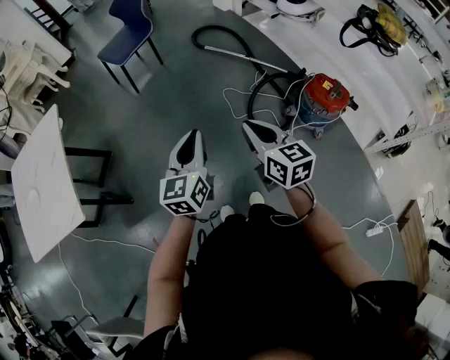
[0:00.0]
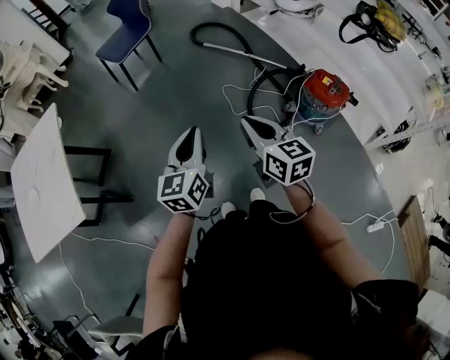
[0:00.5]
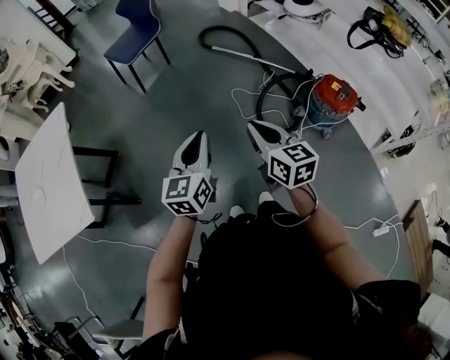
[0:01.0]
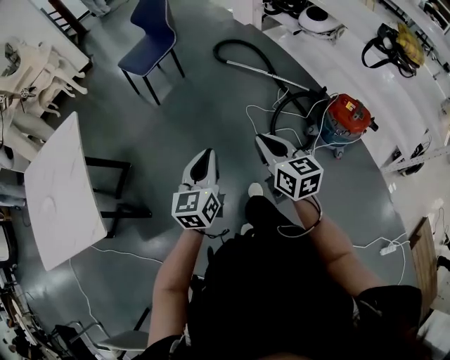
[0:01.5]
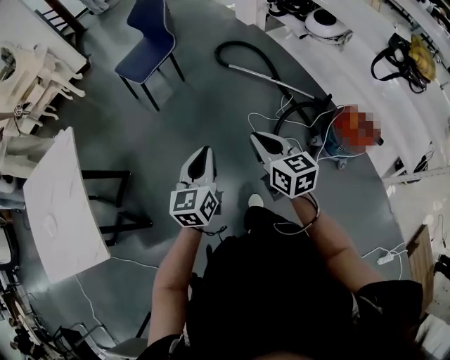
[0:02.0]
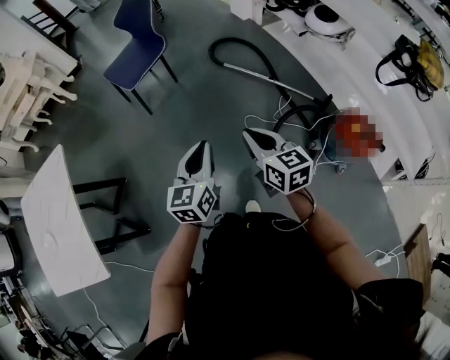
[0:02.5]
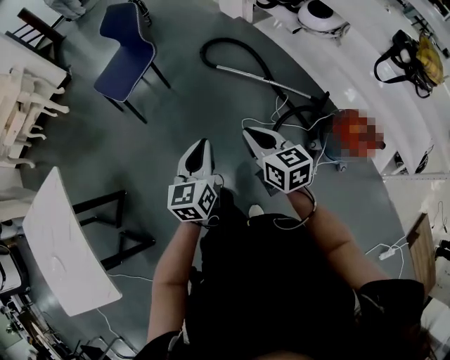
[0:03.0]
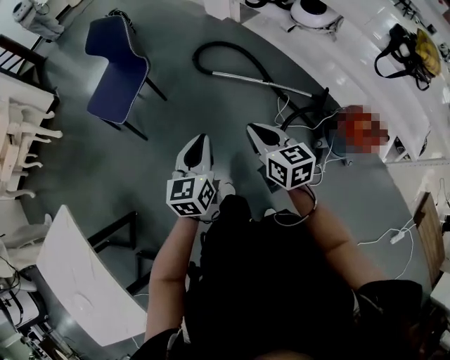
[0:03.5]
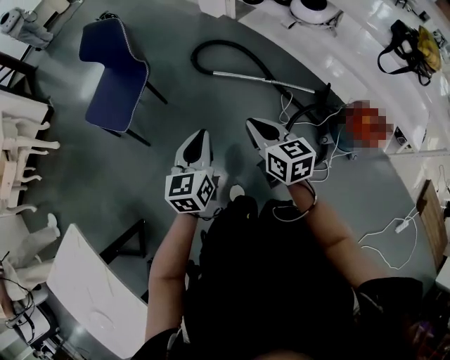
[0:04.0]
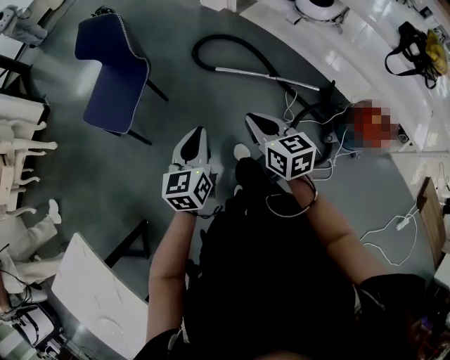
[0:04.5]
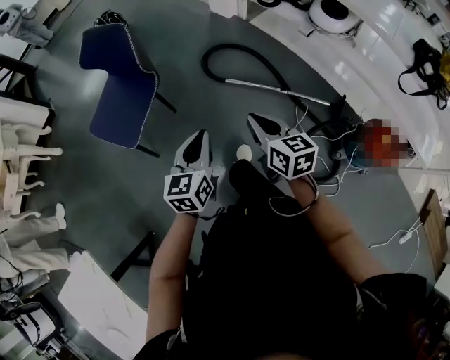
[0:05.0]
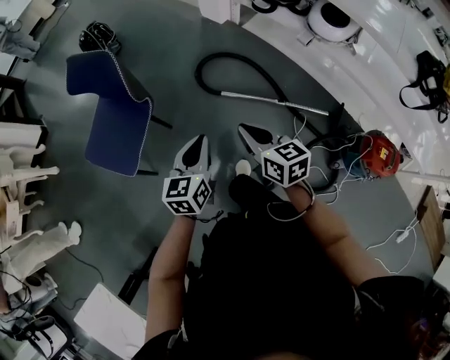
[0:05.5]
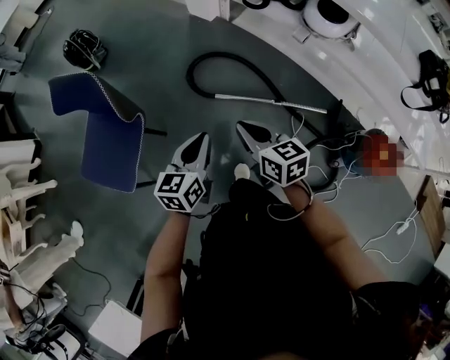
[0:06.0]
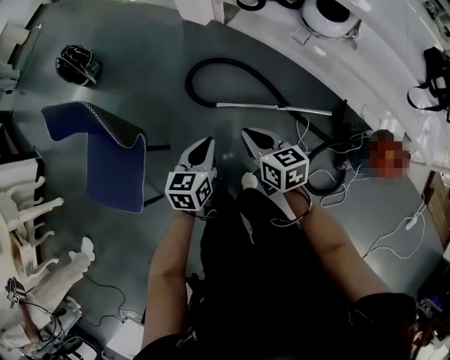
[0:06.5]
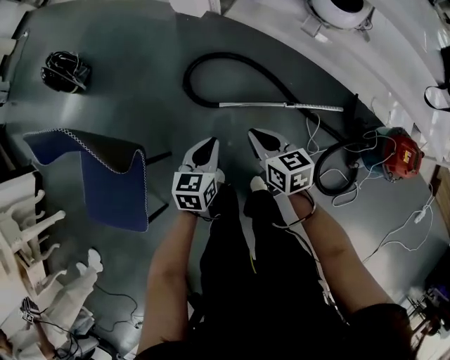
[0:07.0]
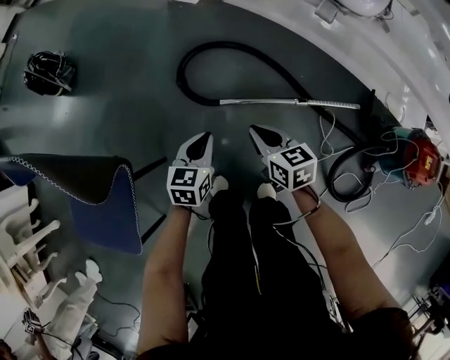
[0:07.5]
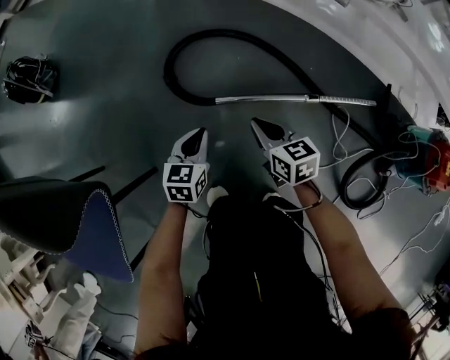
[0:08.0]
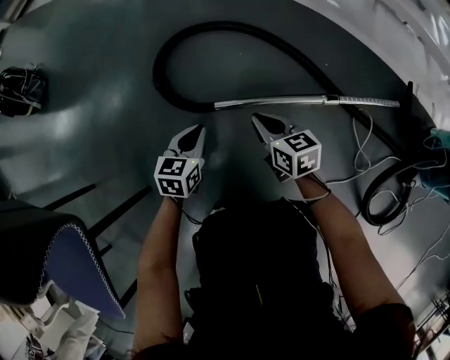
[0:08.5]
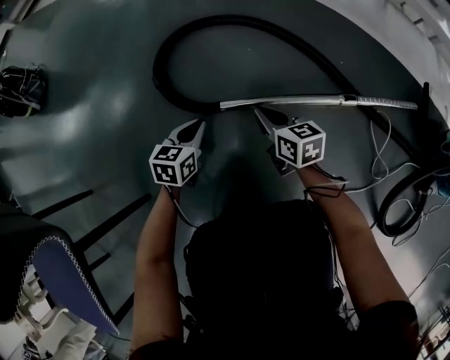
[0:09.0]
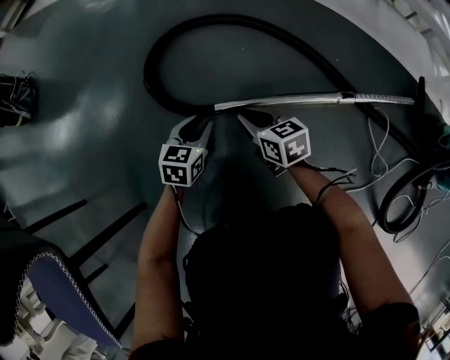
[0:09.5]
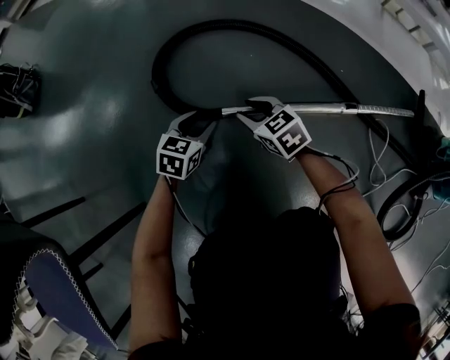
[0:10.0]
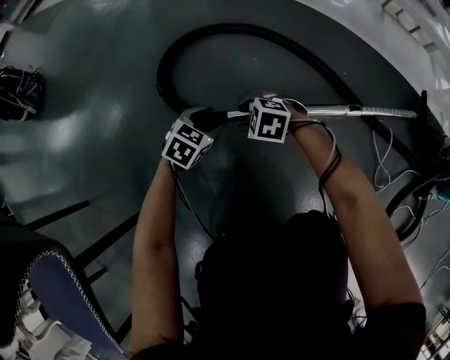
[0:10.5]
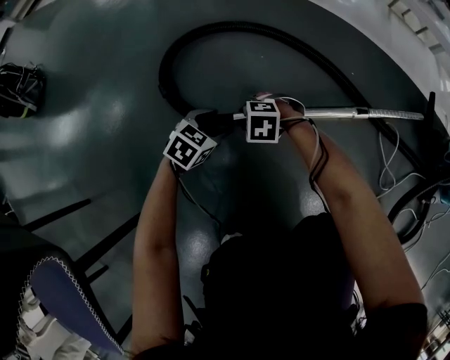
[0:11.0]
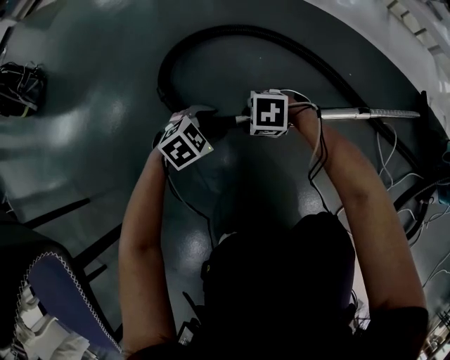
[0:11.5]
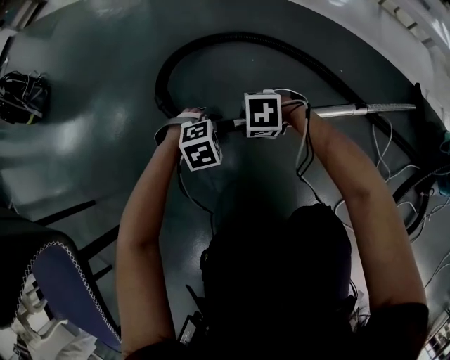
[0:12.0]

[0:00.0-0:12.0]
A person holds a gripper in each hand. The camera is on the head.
0:00.0 to 0:02.0: Both grippers move forward, roughly 20 cm.
0:02.0 to 0:04.0: The two grippers go approximately 35 cm forward.
0:04.0 to 0:06.0: Both grippers travel together forward, roughly 35 cm.
0:06.0 to 0:08.0: Both grippers travel together downward and forward, some 50 cm. The left gripper rotates roughly 20 degrees.
0:08.0 to 0:10.0: Both grippers travel together downward, approximately 25 cm. The left gripper opens its fingers. Meanwhile the right gripper changes its angle by roughly 30 degrees, and opens.
0:10.0 to 0:12.0: The right gripper travels downward and back again, approximately 10 cm each way, and changes its angle by roughly 50 degrees. The left gripper rolls clockwise, seen from behind, by some 50 degrees.

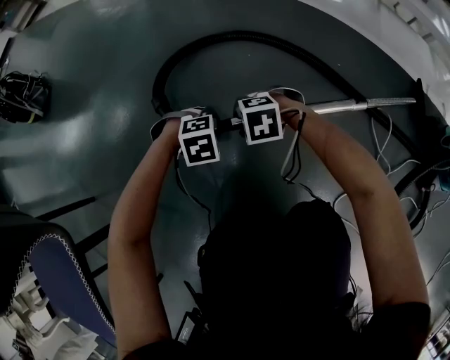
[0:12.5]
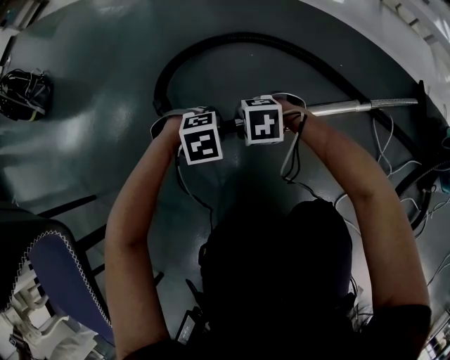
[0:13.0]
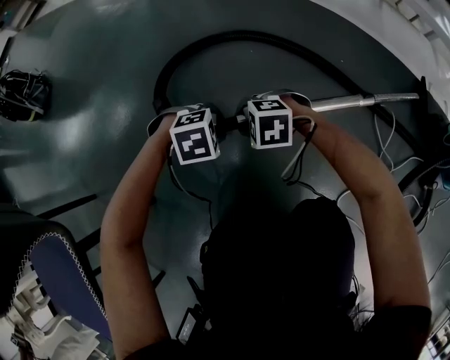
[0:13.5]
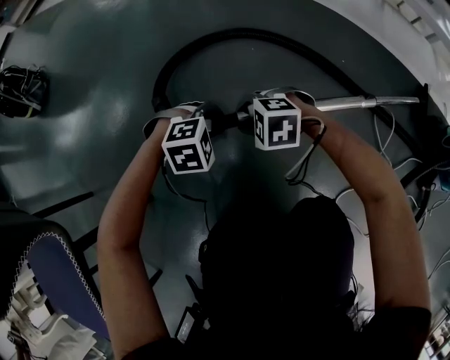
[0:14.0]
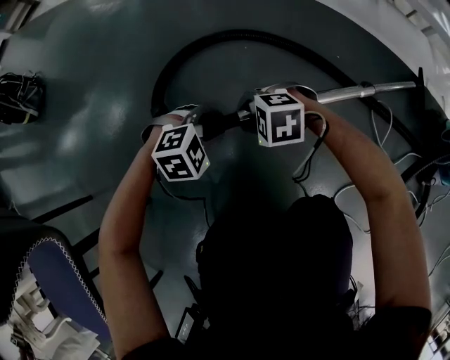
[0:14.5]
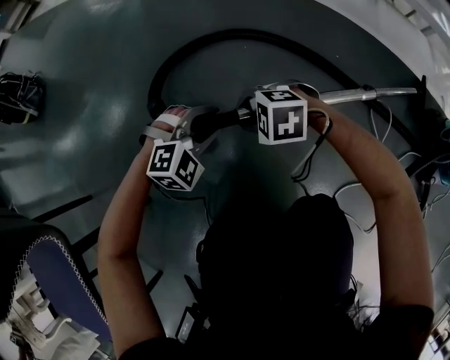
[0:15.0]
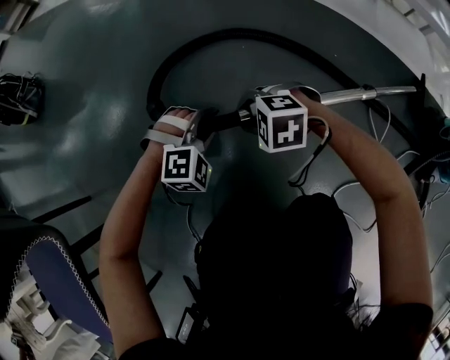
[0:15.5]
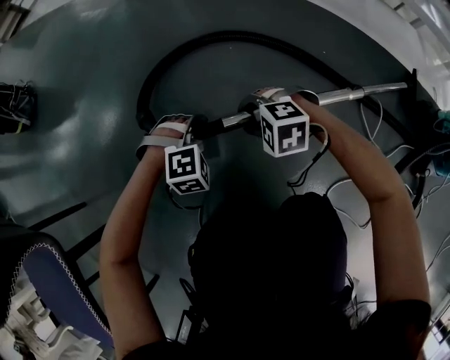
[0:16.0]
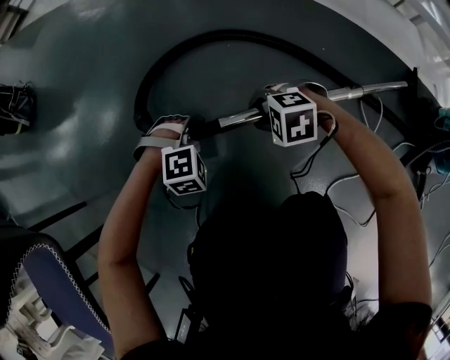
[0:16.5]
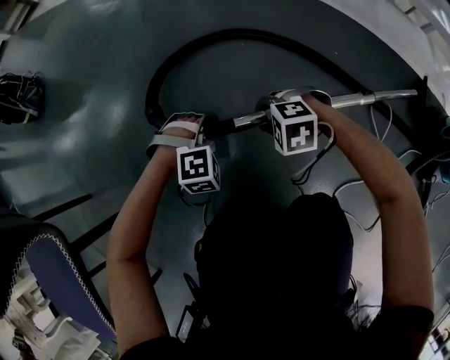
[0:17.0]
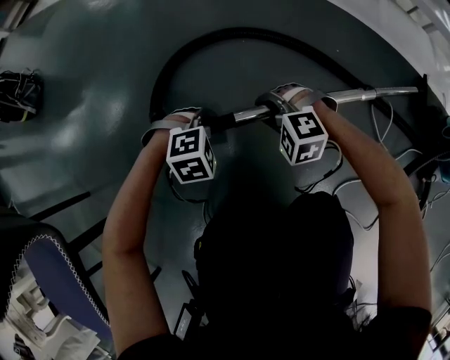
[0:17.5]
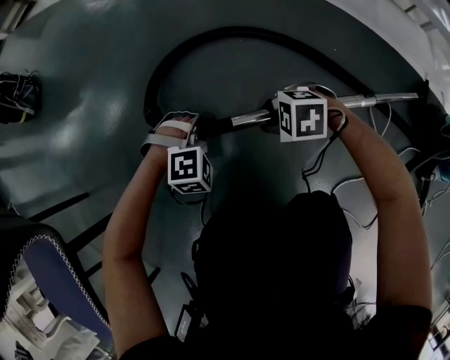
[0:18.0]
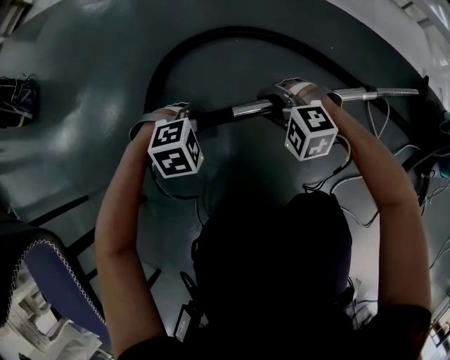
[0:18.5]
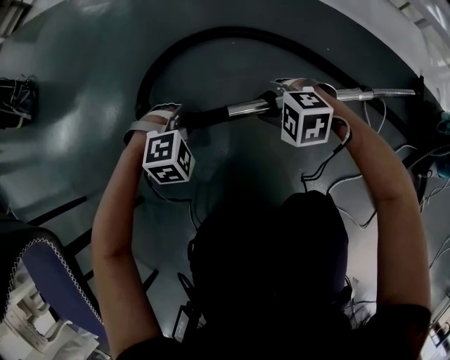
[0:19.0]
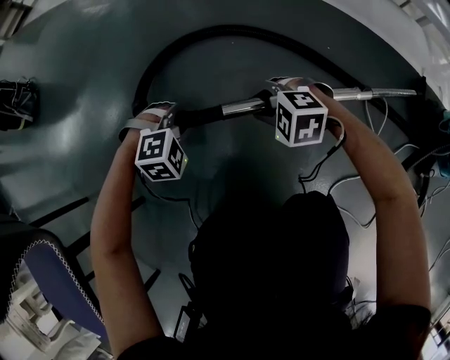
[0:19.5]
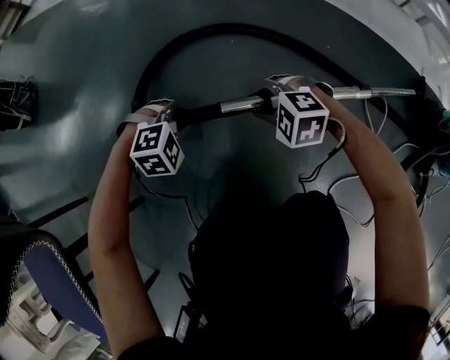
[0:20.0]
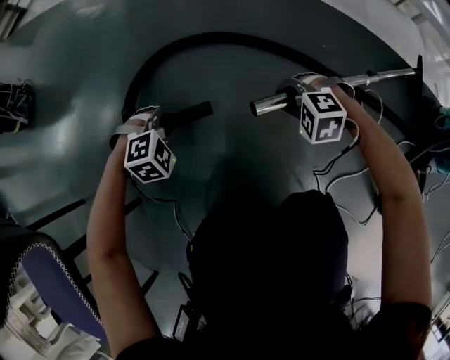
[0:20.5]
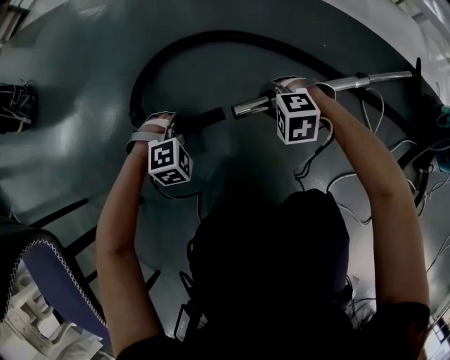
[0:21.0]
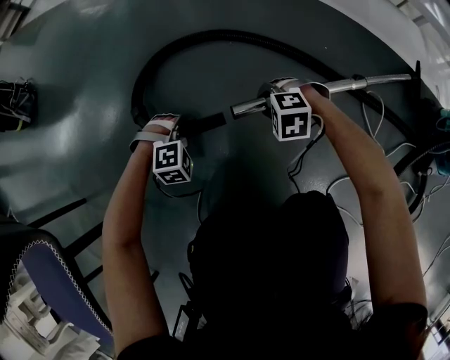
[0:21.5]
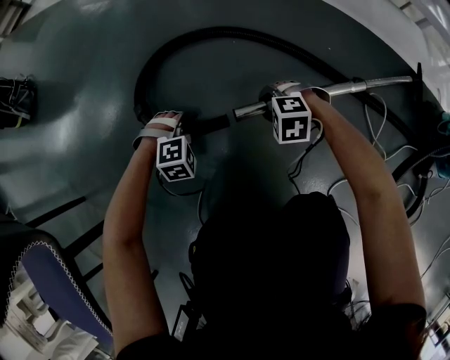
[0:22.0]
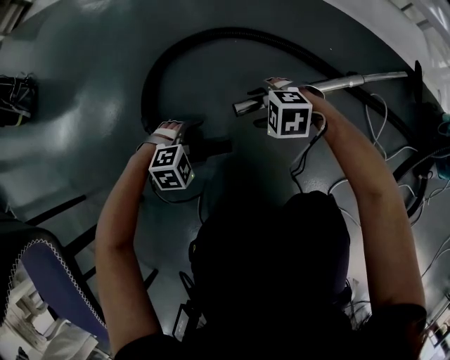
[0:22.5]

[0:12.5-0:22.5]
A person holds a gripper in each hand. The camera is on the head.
0:12.5 to 0:14.5: The left gripper travels upward by approximately 5 cm.
0:14.5 to 0:16.5: The right gripper changes place by approximately 5 cm. Meanwhile the left gripper rotates approximately 20 degrees.
0:16.5 to 0:18.5: The left gripper rotates some 20 degrees, while the right gripper turns by roughly 20 degrees.
0:18.5 to 0:20.5: The left gripper ends up approximately 5 cm from where it was. Meanwhile the right gripper is displaced to the right by some 5 cm.
0:20.5 to 0:22.5: The right gripper changes place by about 10 cm, and opens up. The left gripper changes place by approximately 10 cm, and opens its fingers.

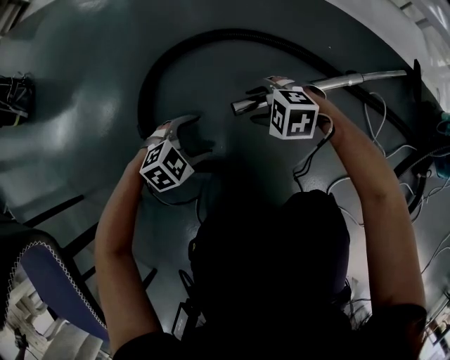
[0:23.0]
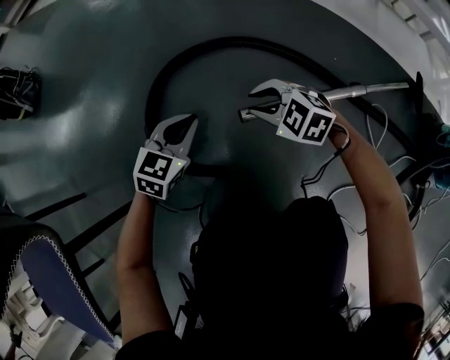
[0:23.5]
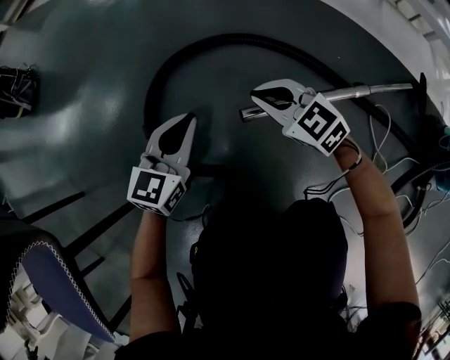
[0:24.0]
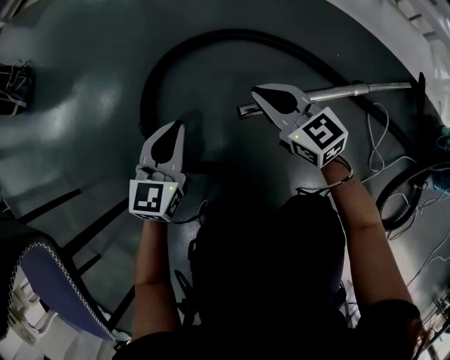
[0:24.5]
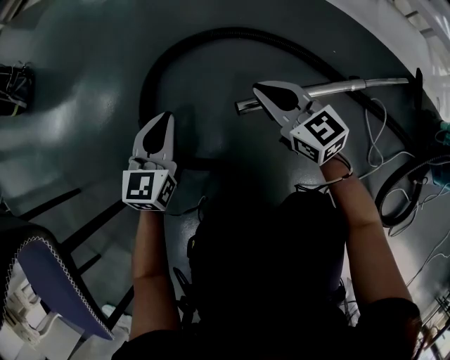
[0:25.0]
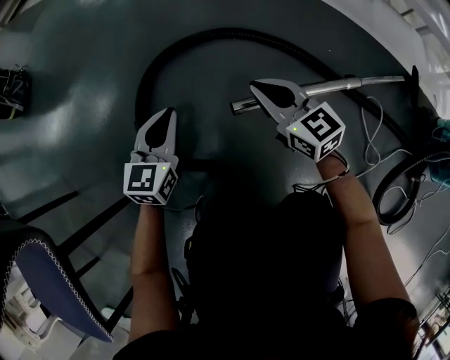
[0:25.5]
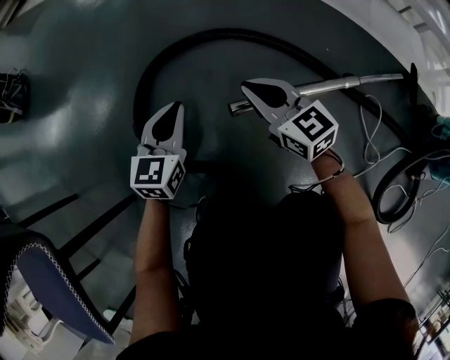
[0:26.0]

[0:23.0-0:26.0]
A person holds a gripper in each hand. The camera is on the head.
0:23.0 to 0:24.5: Both grippers travel together upward, approximately 10 cm. The right gripper angles its fingers upward, by some 40 degrees, and closes up. Meanwhile the left gripper angles its fingers upward, by some 40 degrees, and closes up.
0:24.5 to 0:26.0: The grippers move only a little.

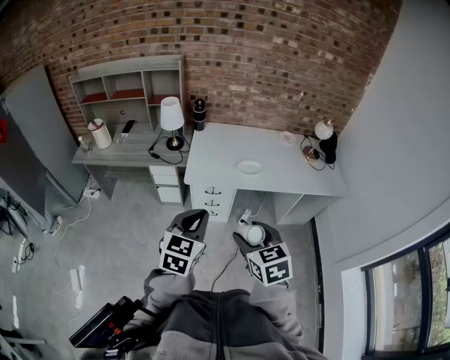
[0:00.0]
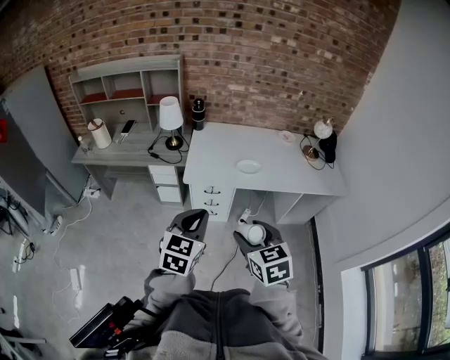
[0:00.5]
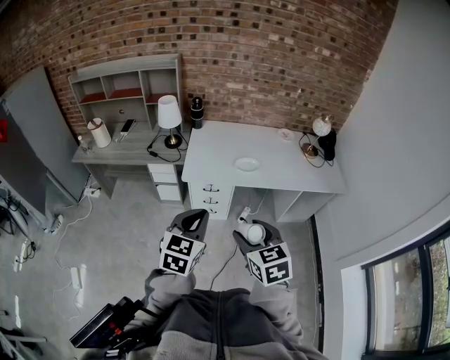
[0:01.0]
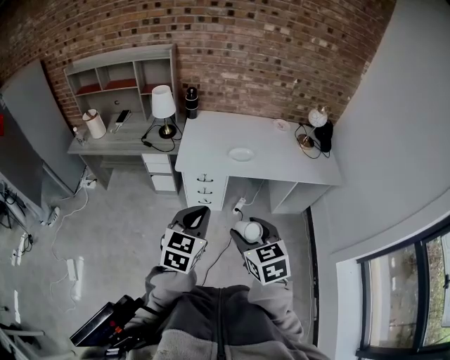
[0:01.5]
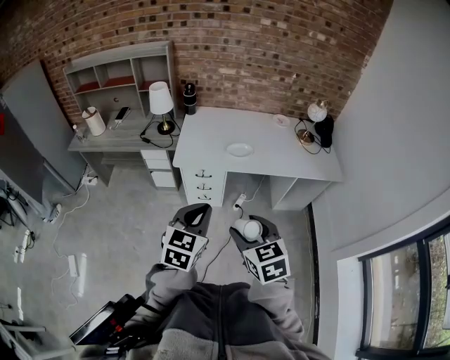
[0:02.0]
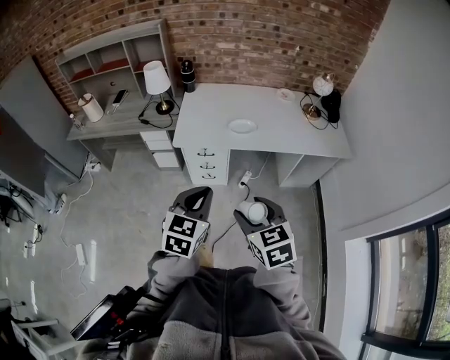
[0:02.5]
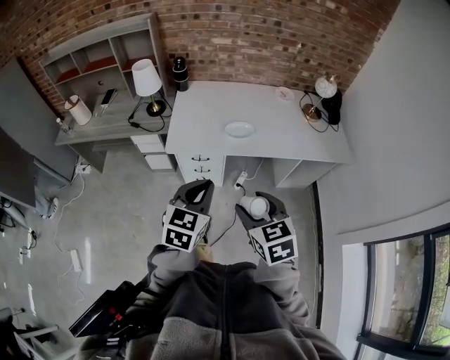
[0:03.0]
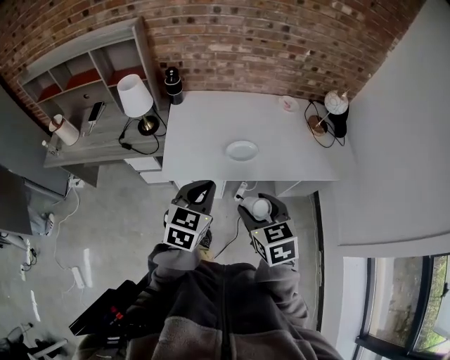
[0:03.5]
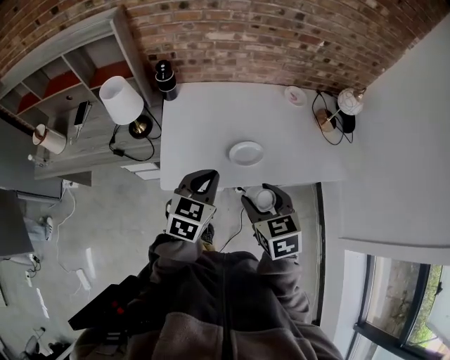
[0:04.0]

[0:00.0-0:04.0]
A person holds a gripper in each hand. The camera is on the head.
0:00.0 to 0:02.0: Both grippers move to the right, approximately 10 cm.
0:02.0 to 0:04.0: The grippers both shift forward by about 40 cm.
